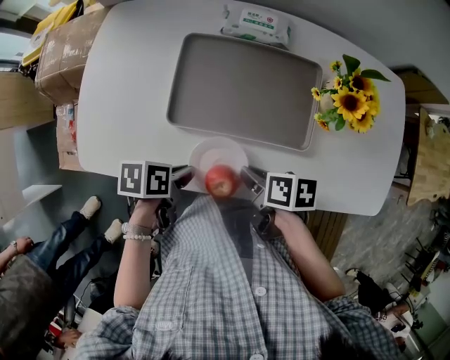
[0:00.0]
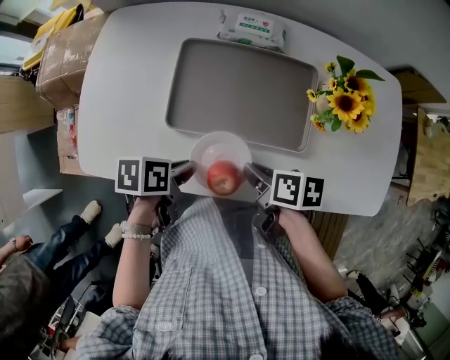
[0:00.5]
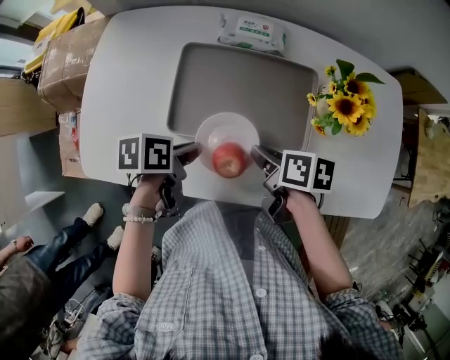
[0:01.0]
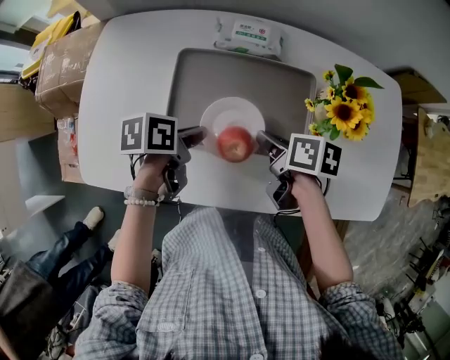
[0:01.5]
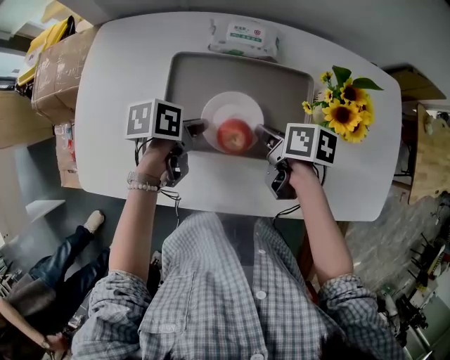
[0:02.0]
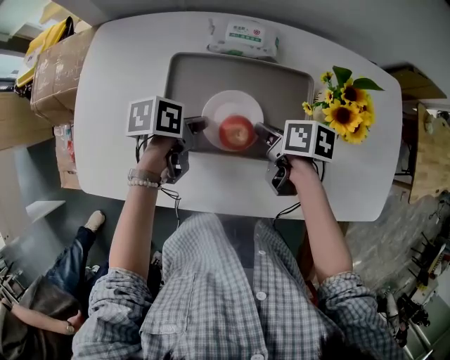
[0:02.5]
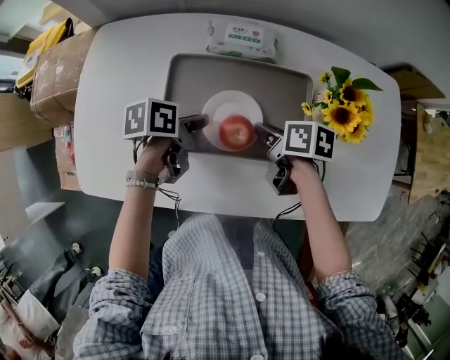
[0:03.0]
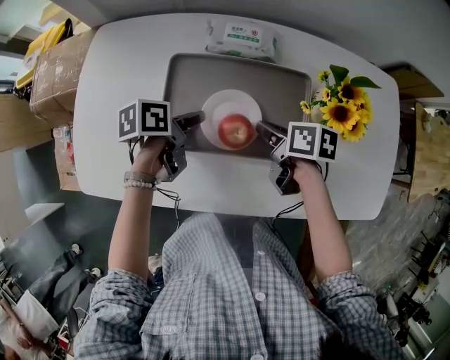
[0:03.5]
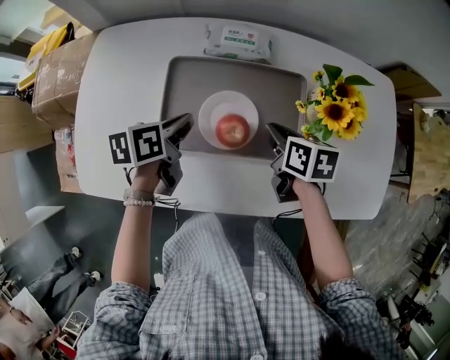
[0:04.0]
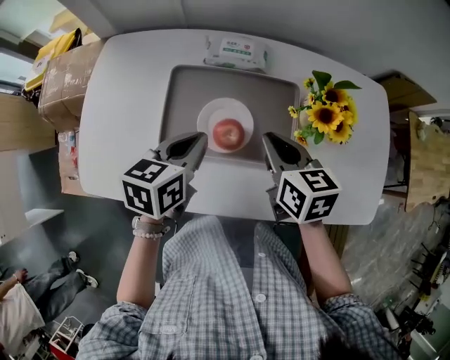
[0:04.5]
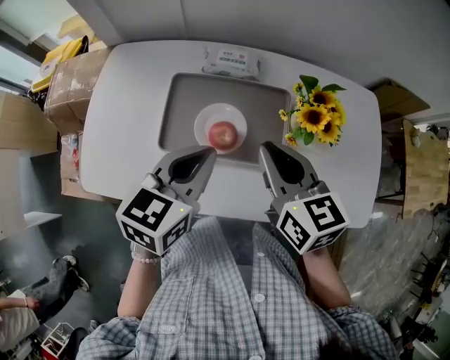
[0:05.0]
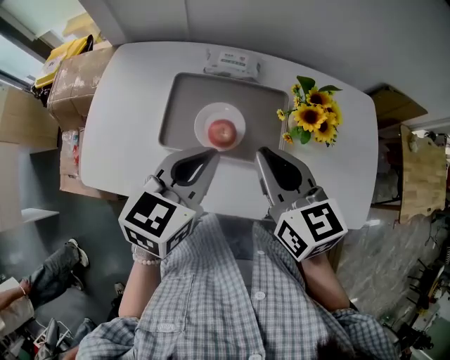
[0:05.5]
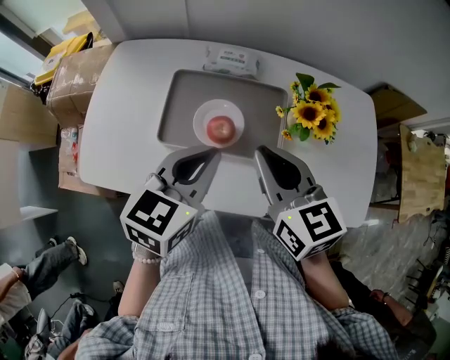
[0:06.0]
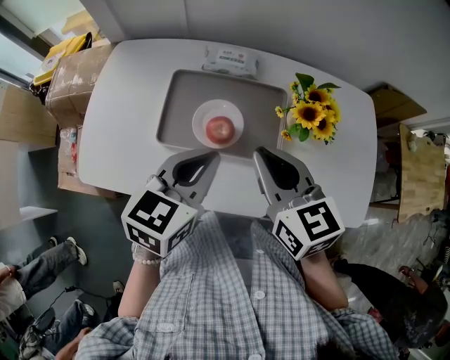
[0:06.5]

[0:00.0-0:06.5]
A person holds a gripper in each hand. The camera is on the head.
0.0 to 2.0 s: The right gripper moves about 15 cm; the left gripper changes place by some 20 cm.
2.0 to 4.5 s: Both grippers move upward, roughly 10 cm. The right gripper swivels approximately 40 degrees. Meanwhile the left gripper swivels about 40 degrees.
4.5 to 6.5 s: The right gripper goes roughly 10 cm upward and backward, and swivels about 20 degrees. Meanwhile the left gripper travels upward, backward and to the right by roughly 10 cm.

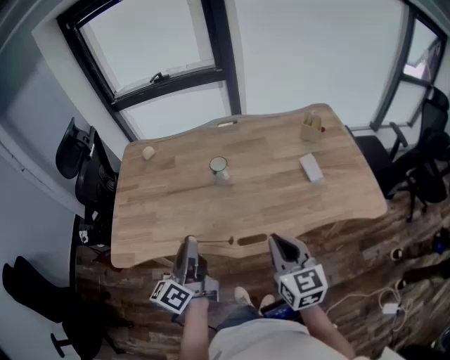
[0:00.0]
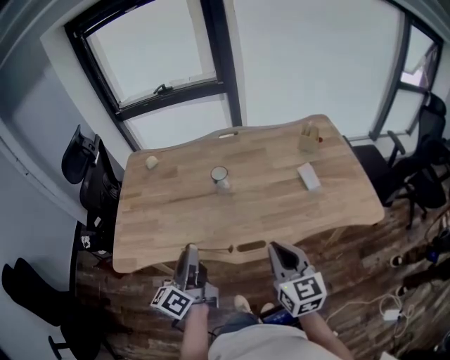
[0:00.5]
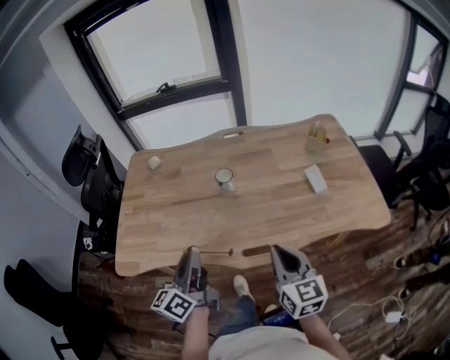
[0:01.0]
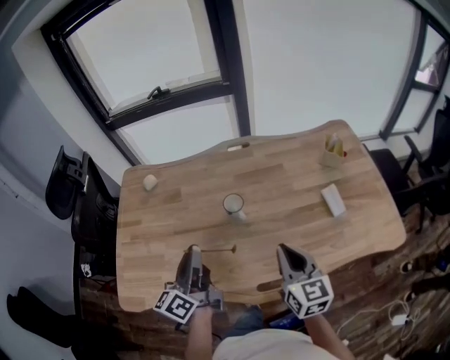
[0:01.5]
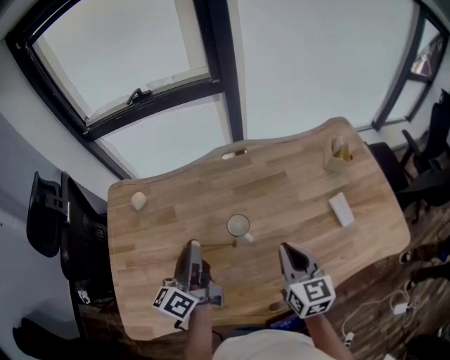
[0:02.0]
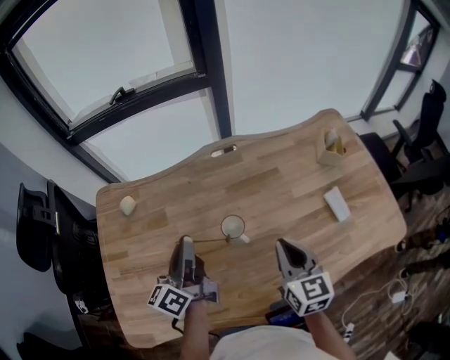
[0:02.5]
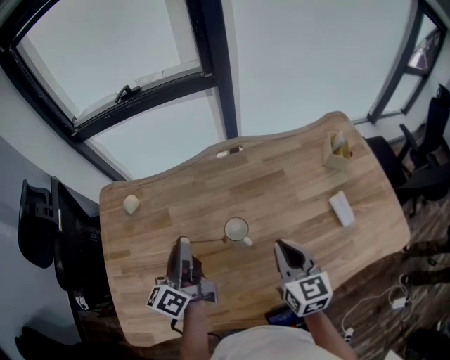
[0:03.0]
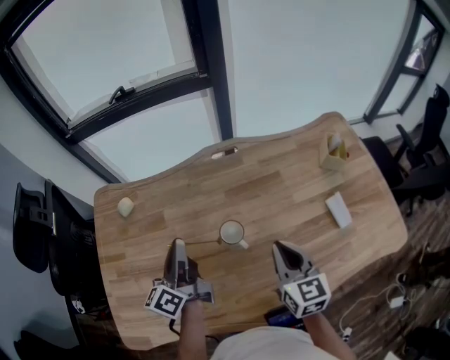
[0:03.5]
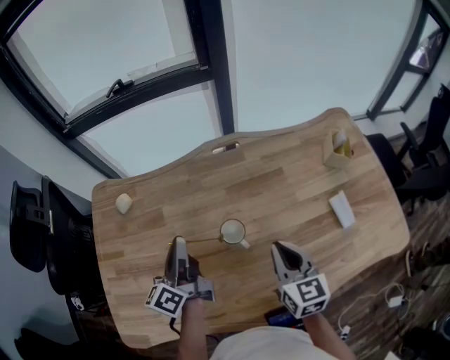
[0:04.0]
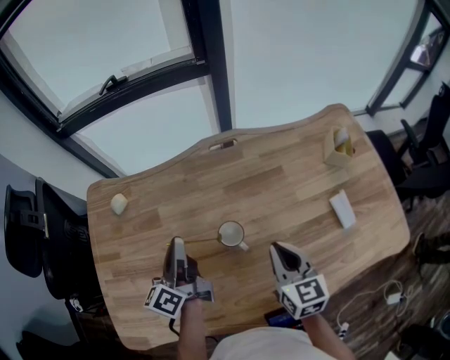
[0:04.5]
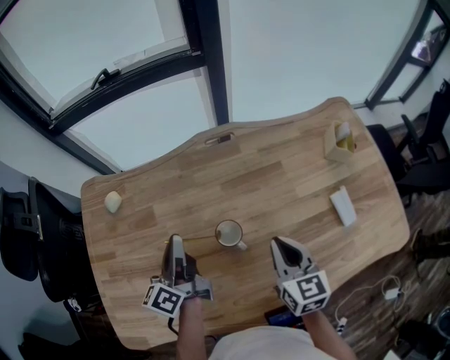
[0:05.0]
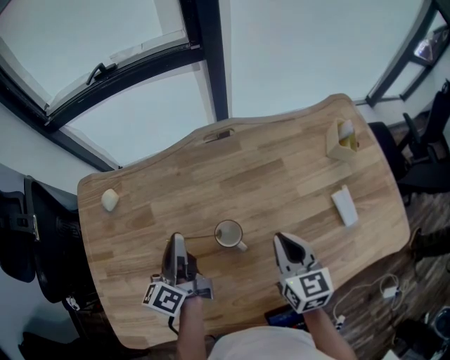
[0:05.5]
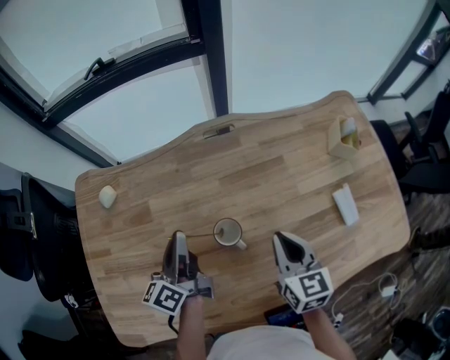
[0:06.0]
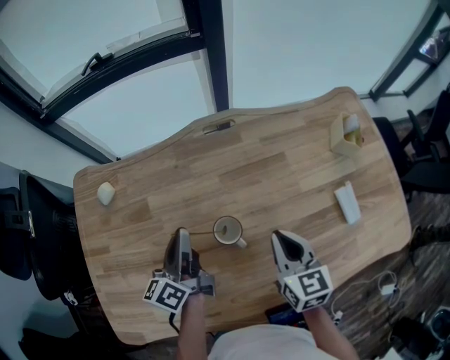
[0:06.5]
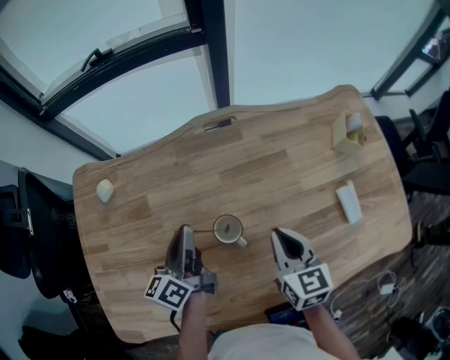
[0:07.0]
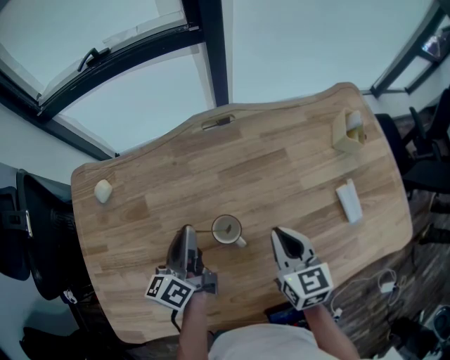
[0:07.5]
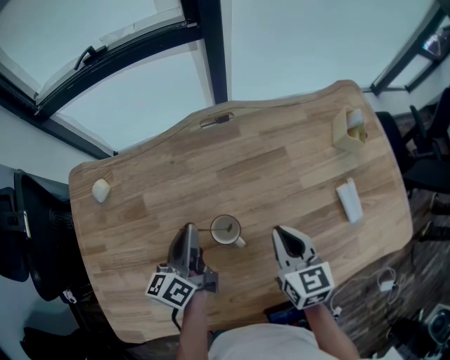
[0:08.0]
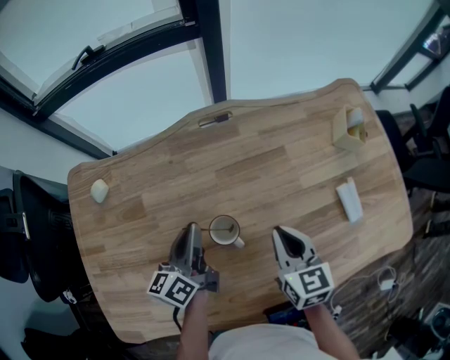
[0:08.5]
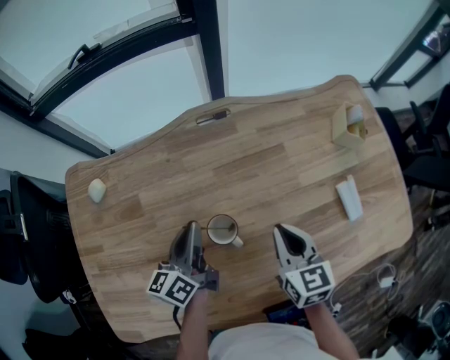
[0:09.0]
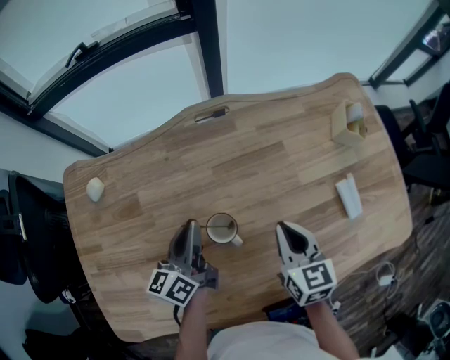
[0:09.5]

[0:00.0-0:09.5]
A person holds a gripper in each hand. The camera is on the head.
0.0 to 2.0 s: Both grippers move forward, roughly 25 cm.
2.0 to 4.0 s: The left gripper travels forward and downward by some 10 cm; the right gripper shifts by some 5 cm.
4.0 to 5.5 s: The left gripper changes place by roughly 5 cm.
5.5 to 7.5 s: The grippers stay close to where they were, moving slightly.
7.5 to 9.5 s: The grippers make only small movements.

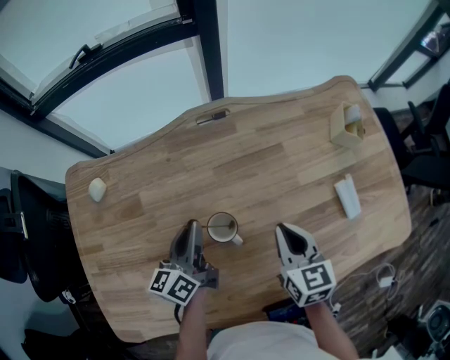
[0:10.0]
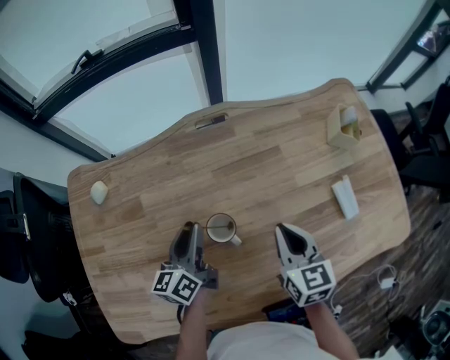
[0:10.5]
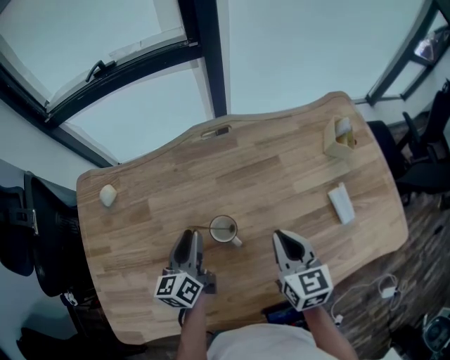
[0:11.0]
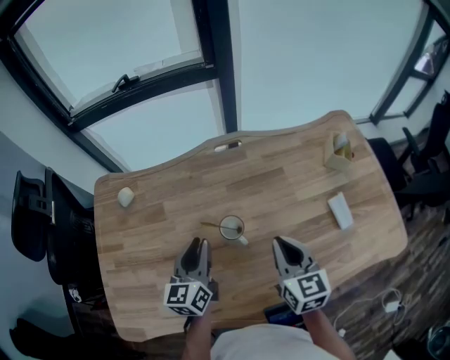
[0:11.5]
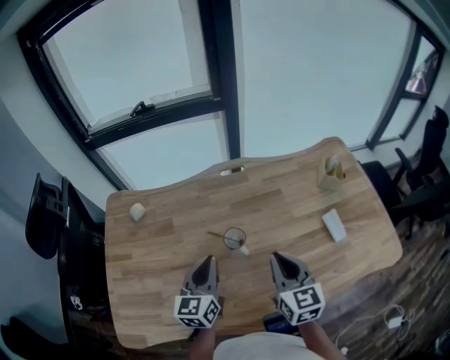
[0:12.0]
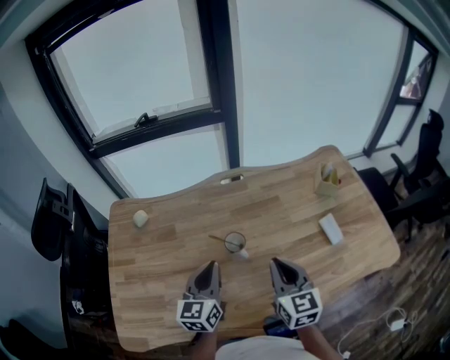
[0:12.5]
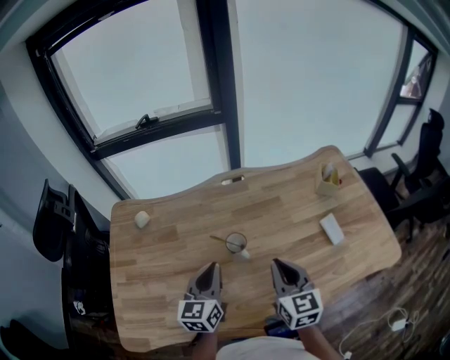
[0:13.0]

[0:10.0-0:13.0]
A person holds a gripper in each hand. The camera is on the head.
10.0 to 11.5 s: The left gripper shifts about 10 cm backward and upward, and rotates approximately 20 degrees; the right gripper travels upward by approximately 5 cm.
11.5 to 13.0 s: Both grippers travel together backward, roughly 5 cm. The left gripper closes.

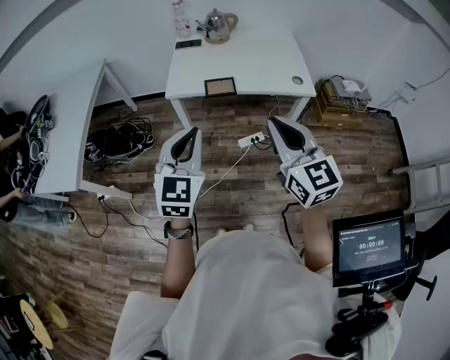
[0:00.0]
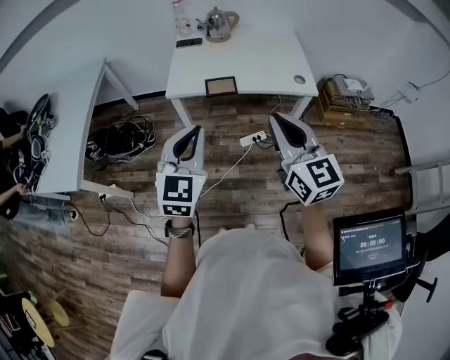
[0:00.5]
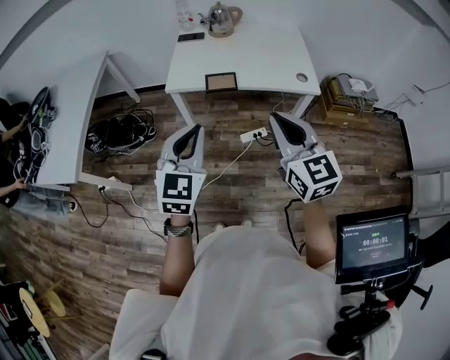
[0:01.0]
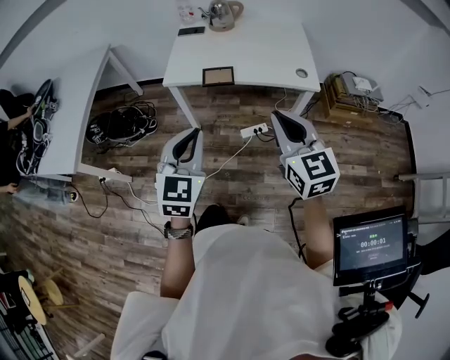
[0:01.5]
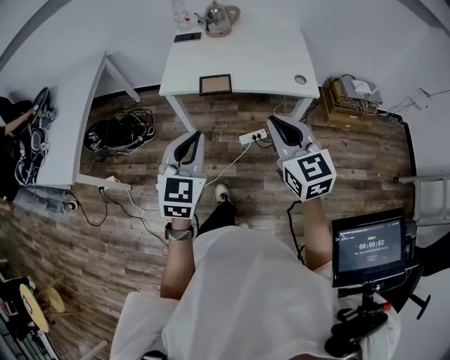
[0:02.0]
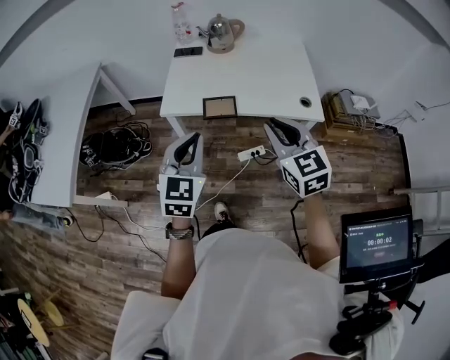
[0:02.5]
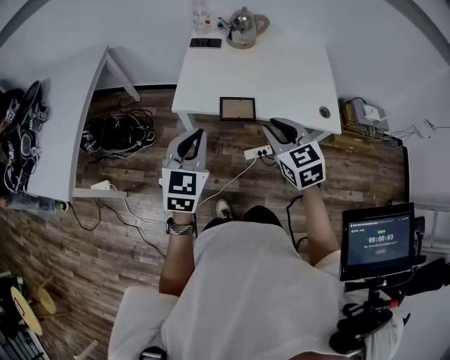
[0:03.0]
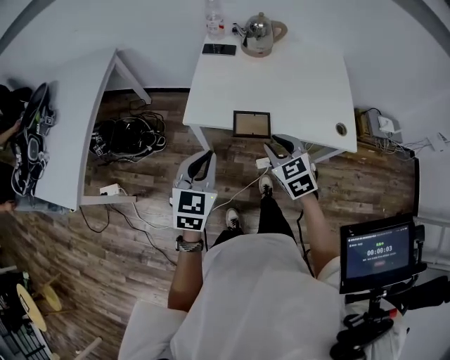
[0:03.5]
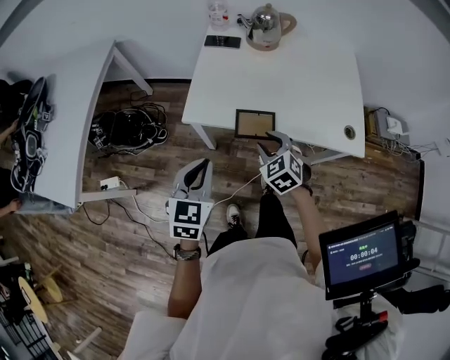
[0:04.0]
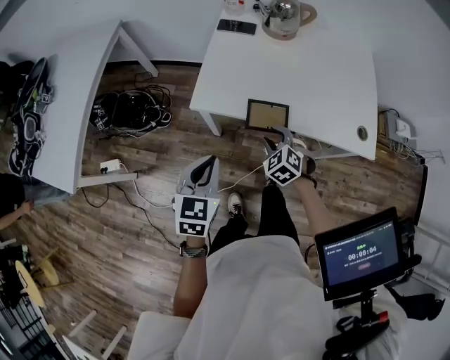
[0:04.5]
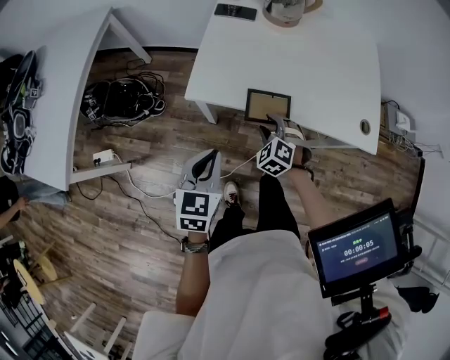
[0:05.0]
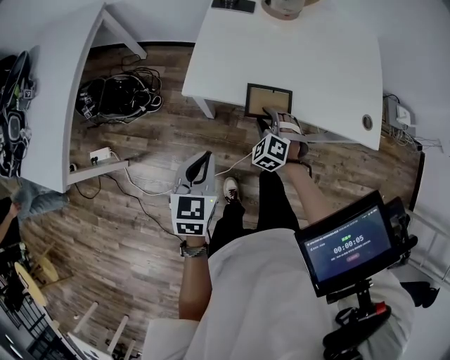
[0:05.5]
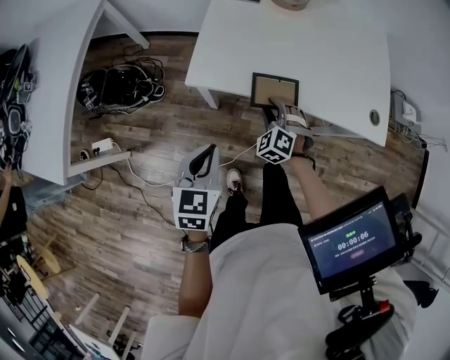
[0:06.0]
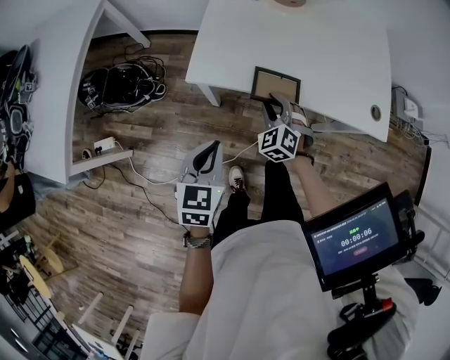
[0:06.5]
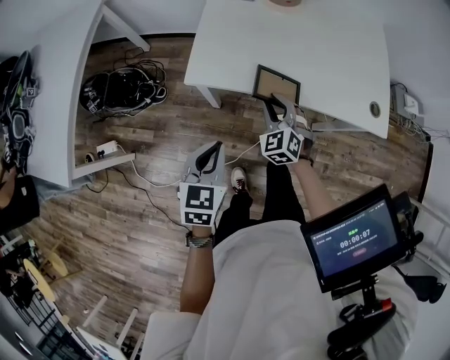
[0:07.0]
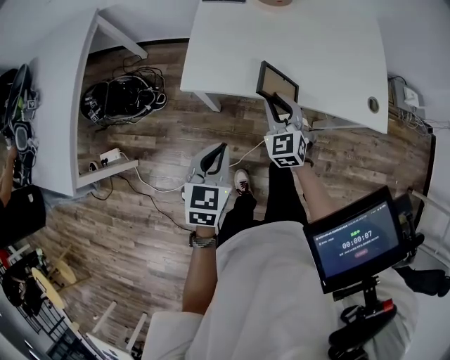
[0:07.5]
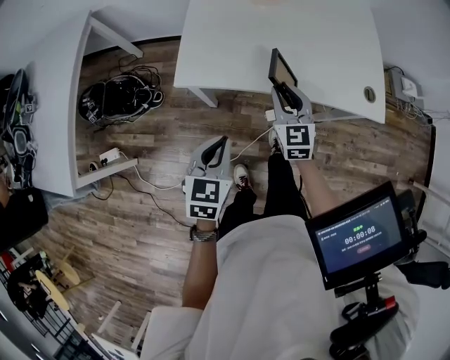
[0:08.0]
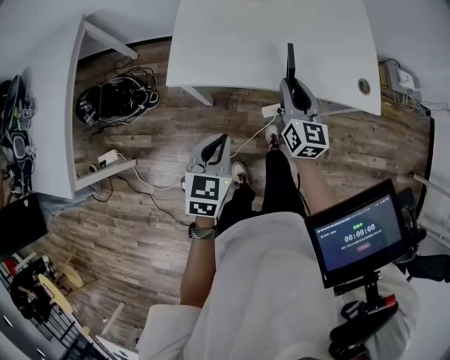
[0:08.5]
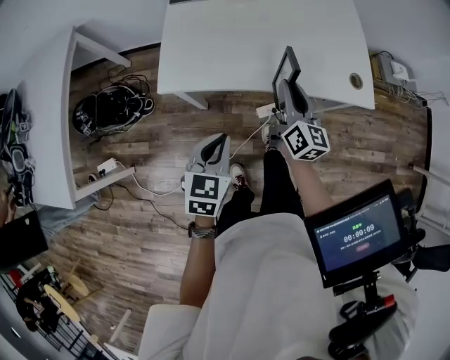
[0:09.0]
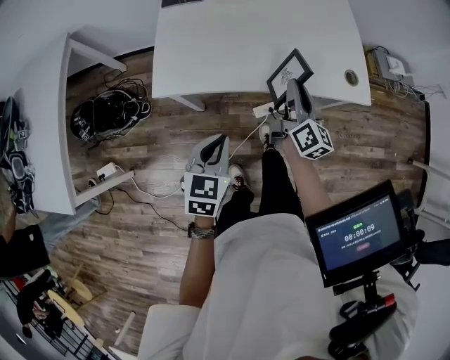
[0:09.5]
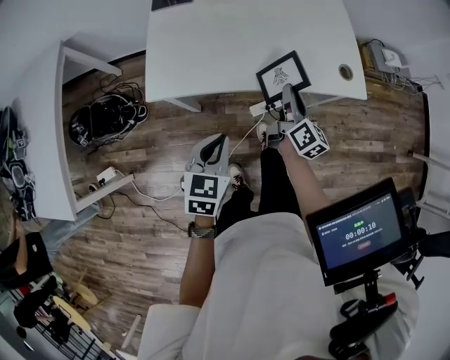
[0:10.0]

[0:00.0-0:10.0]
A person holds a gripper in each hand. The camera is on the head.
0.0 to 2.0 s: The left gripper moves to the right, about 5 cm. Meanwhile the right gripper moves downward, to the right and forward, roughly 10 cm.
2.0 to 4.0 s: The two grippers go roughly 30 cm forward, downward and to the left. The right gripper tips its fingers downward by about 30 degrees, and opens.
4.0 to 6.0 s: The right gripper is displaced downward by some 10 cm, and changes its angle by some 30 degrees. Meanwhile the left gripper is displaced downward by some 5 cm.
6.0 to 8.0 s: The left gripper heads to the right, covering about 5 cm, while the right gripper is displaced upward and to the right by about 10 cm, and rolls clockwise, seen from behind, by about 50 degrees.
8.0 to 10.0 s: The left gripper shifts some 5 cm to the right; the right gripper travels to the right by some 15 cm, and rolls clockwise, seen from behind, by about 60 degrees.
